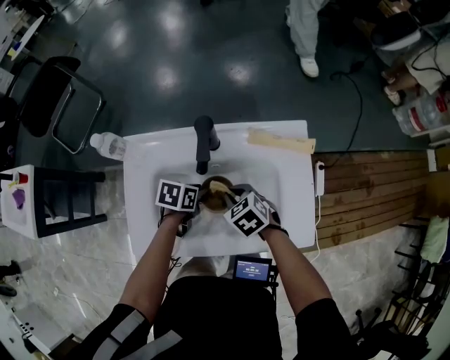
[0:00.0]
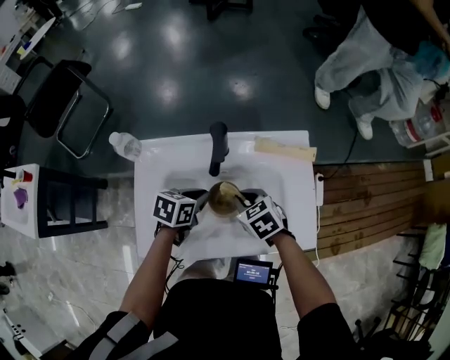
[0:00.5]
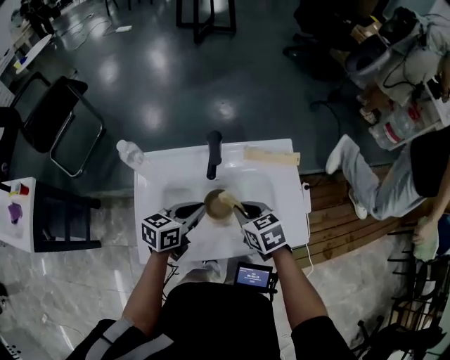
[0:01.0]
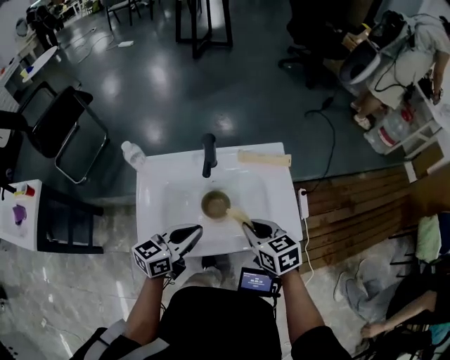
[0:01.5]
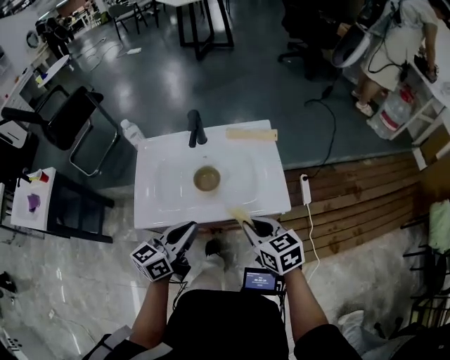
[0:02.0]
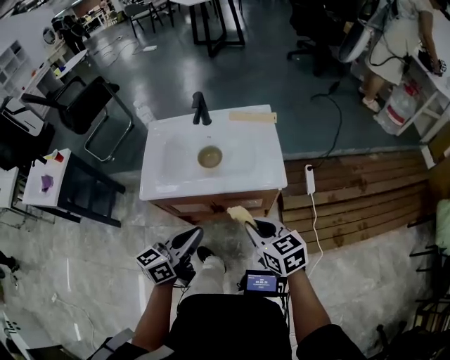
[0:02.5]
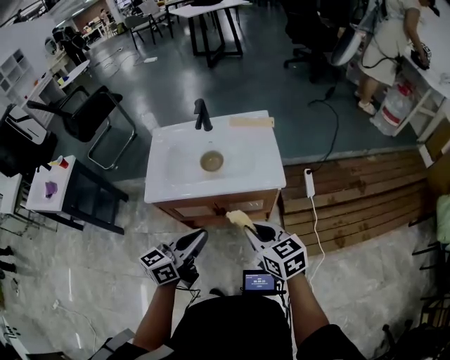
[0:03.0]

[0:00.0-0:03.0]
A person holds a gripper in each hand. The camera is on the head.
0:00.0 to 0:01.5: The right gripper moves upward, backward and to the right, some 20 cm, and changes its angle by about 30 degrees; the left gripper travels upward and backward by approximately 25 cm, tips its fingers upward by some 50 degrees, and closes.
0:01.5 to 0:03.0: Both grippers travel together backward, approximately 25 cm.

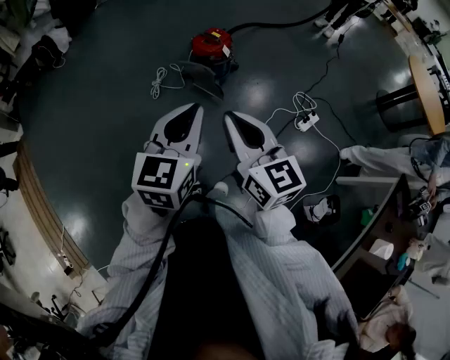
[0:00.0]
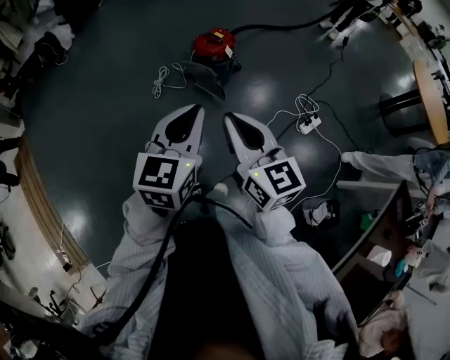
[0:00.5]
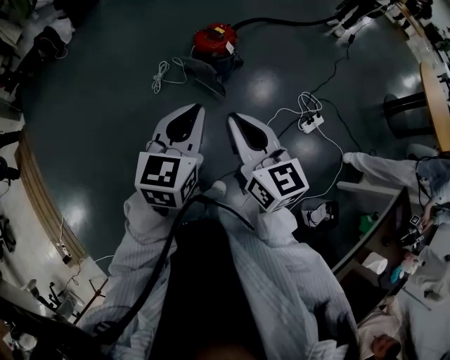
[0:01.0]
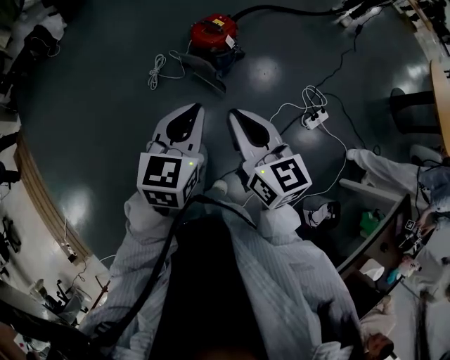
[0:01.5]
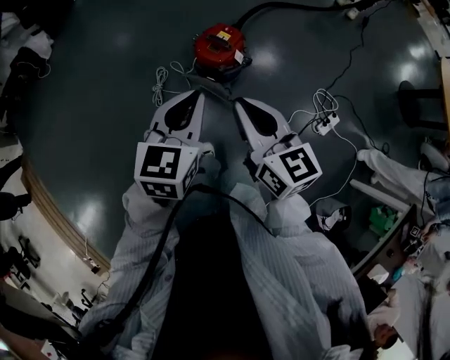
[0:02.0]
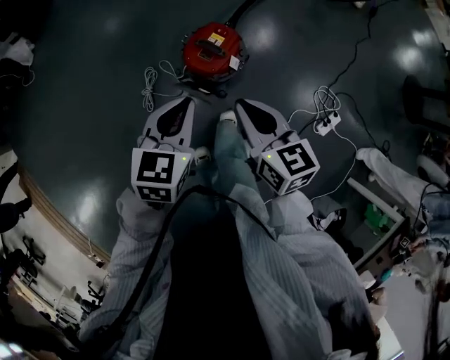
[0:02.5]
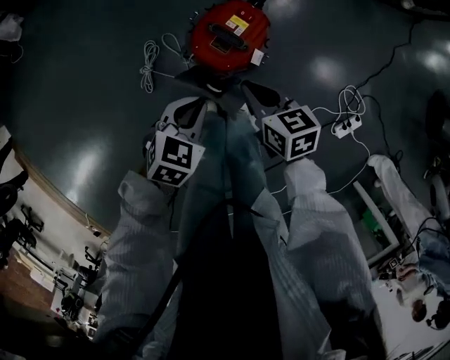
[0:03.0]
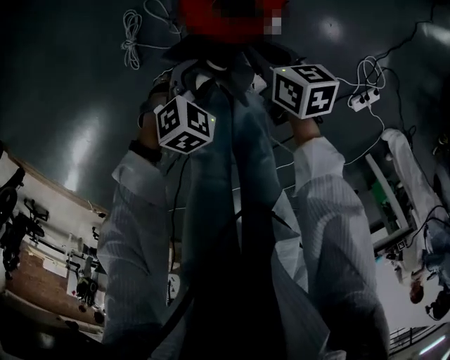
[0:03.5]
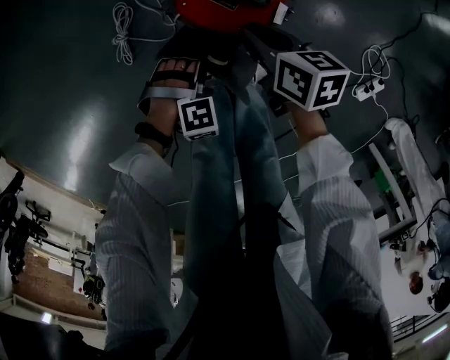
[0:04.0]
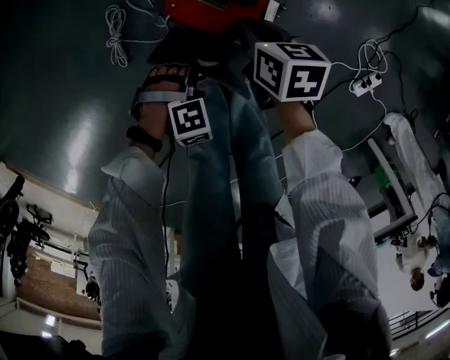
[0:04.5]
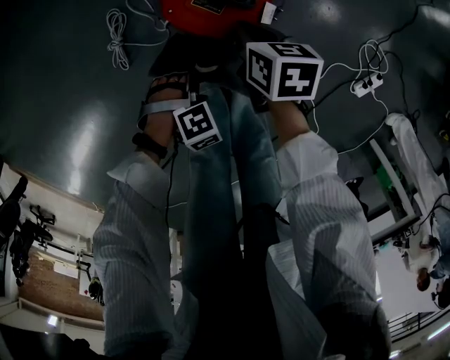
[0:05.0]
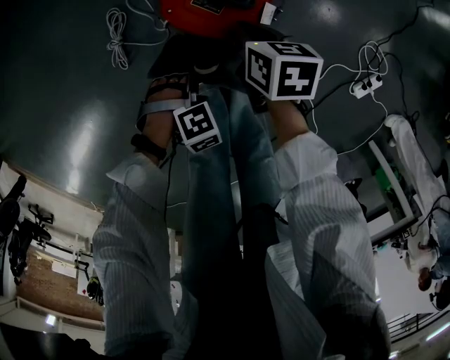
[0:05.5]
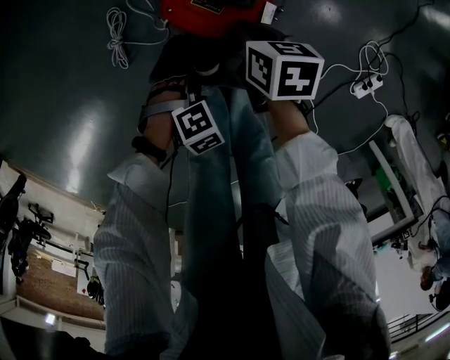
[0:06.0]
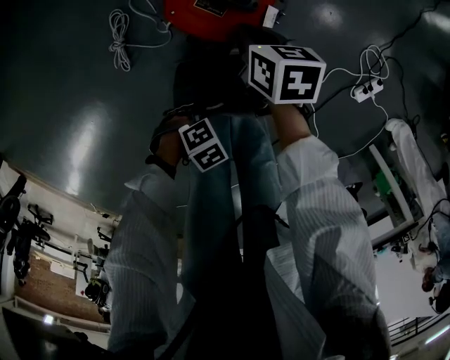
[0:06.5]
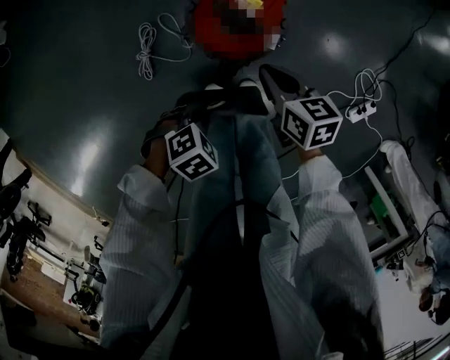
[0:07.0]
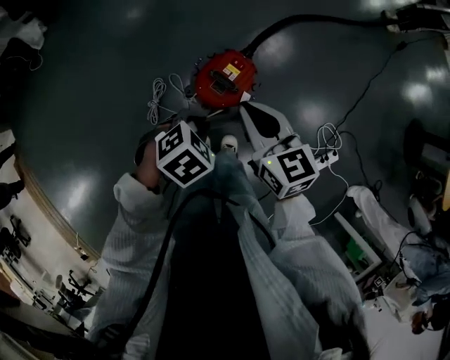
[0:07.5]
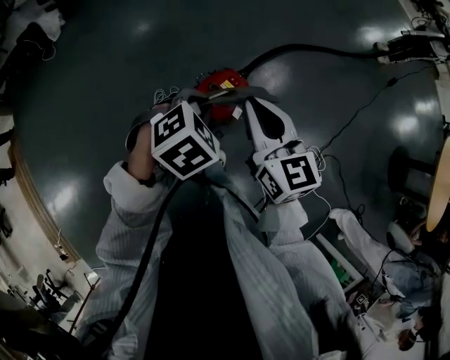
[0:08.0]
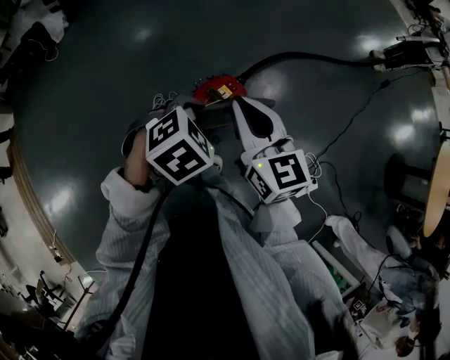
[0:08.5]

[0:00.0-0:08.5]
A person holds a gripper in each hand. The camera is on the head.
0:00.0 to 0:02.0: Both grippers travel together forward, some 40 cm.
0:02.0 to 0:04.0: The left gripper is displaced downward by roughly 60 cm, angles its fingers downward, by some 50 degrees, and opens. The right gripper moves downward and forward, roughly 60 cm, and tilts its fingers about 30 degrees downward.
0:04.0 to 0:06.5: The left gripper shifts by about 15 cm, changes its angle by some 40 degrees, and closes.
0:06.5 to 0:08.5: Both grippers travel together upward, roughly 60 cm. The left gripper swivels some 50 degrees, while the right gripper tilts its fingers roughly 40 degrees upward.

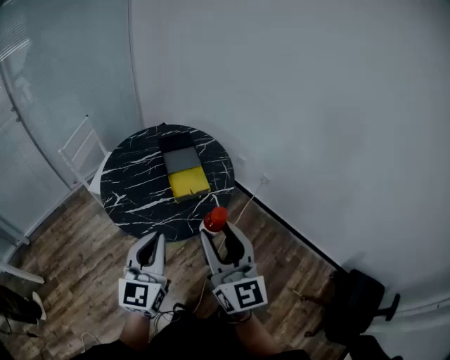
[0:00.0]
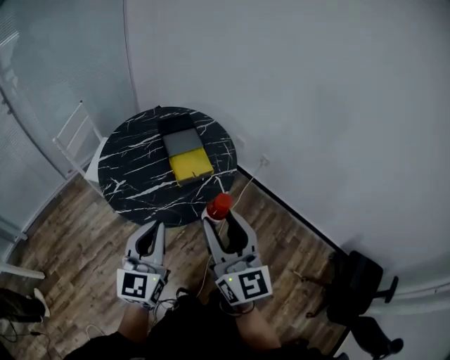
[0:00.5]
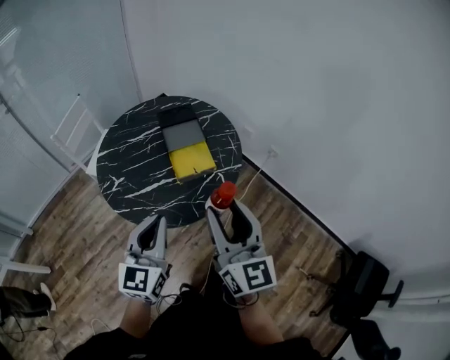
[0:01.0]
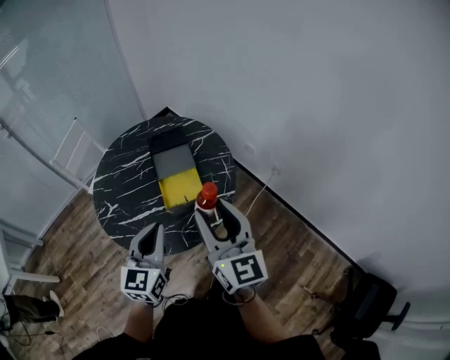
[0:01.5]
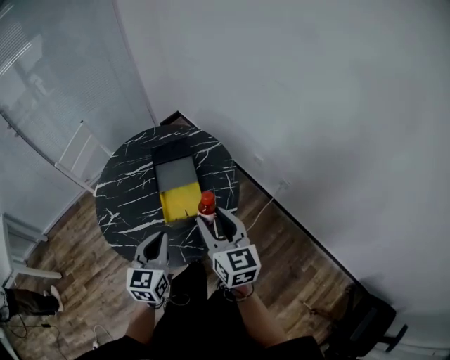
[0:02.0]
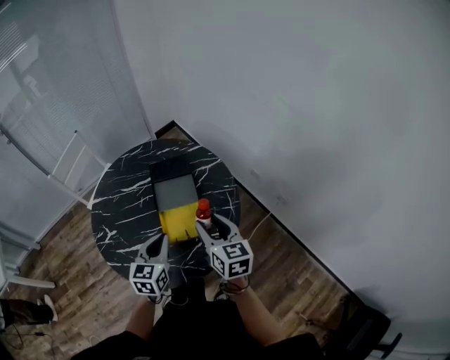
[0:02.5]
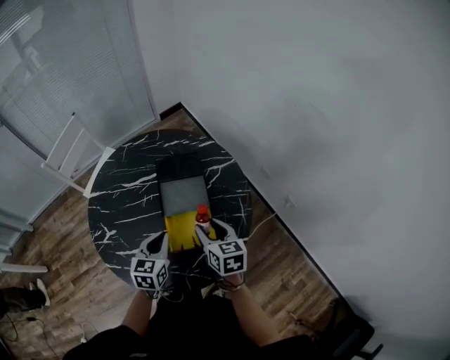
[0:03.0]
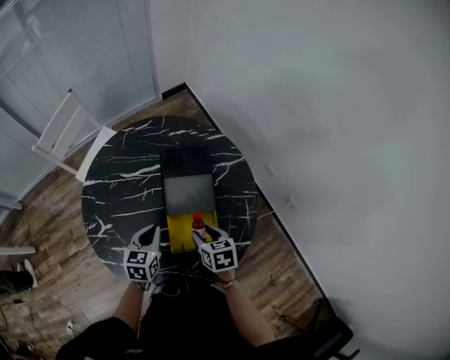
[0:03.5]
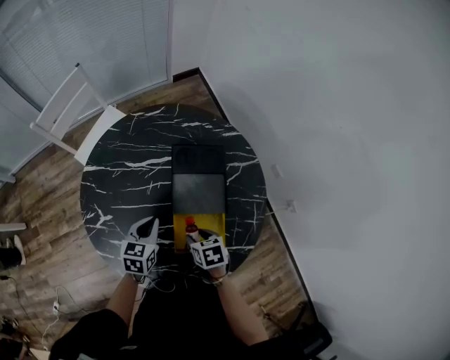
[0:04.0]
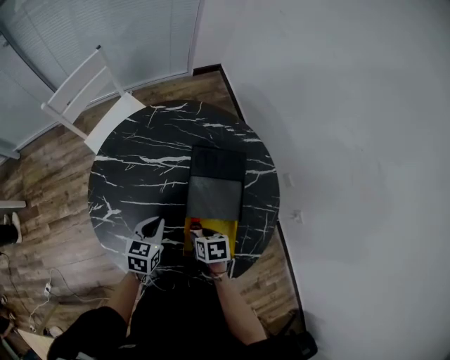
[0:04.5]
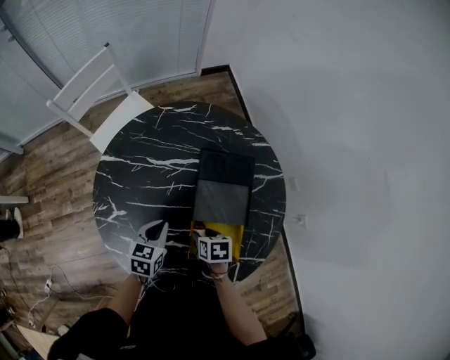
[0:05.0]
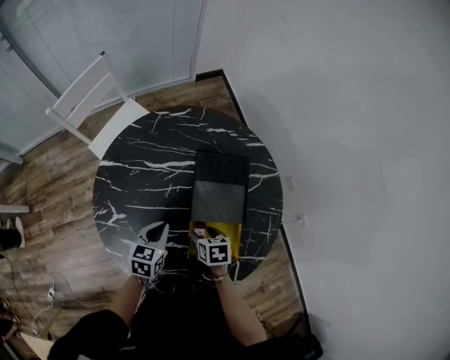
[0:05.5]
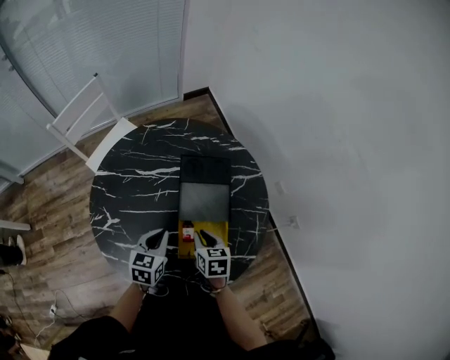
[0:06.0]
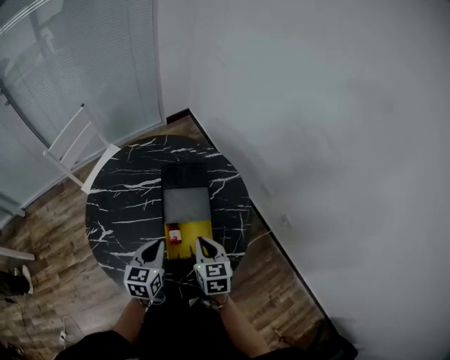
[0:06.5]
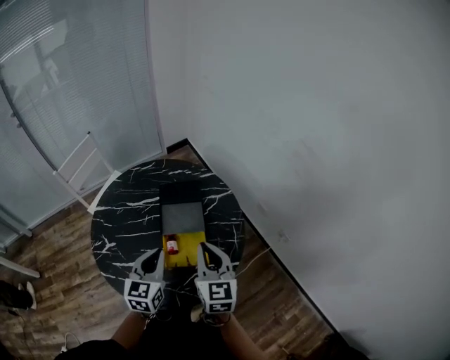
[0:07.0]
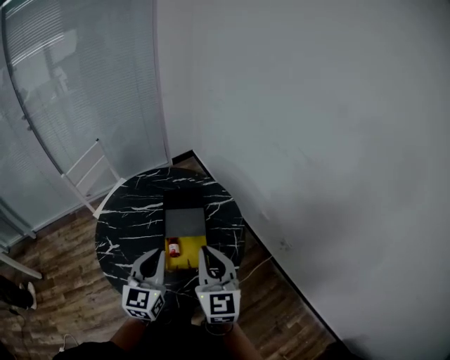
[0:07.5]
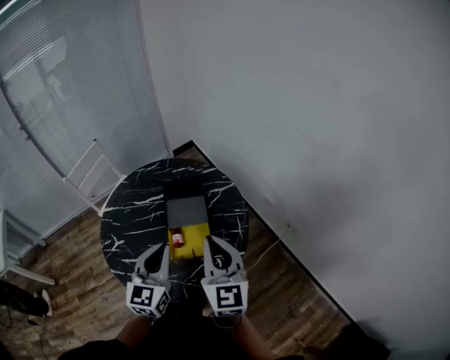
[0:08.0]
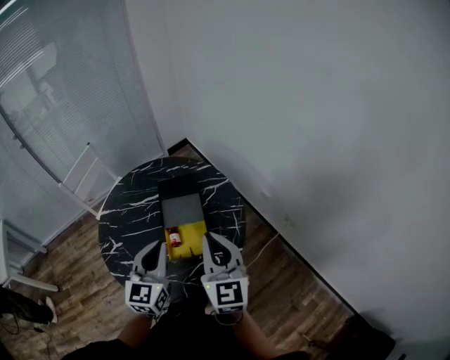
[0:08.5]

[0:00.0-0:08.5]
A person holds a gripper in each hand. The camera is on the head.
0:00.0 to 0:02.0: The right gripper heads forward and downward, covering roughly 30 cm, and changes its angle by about 20 degrees; the left gripper moves forward, downward and to the right, about 25 cm, and changes its angle by some 20 degrees.
0:02.0 to 0:04.0: The left gripper goes approximately 35 cm forward, downward and to the left, and rotates about 30 degrees, while the right gripper goes some 40 cm downward, forward and to the left, and tips its fingers downward by about 50 degrees.
0:04.0 to 0:06.5: The left gripper is displaced upward, backward and to the right by some 15 cm. The right gripper heads upward, covering some 15 cm, rotates about 30 degrees, and closes up.
0:06.5 to 0:08.5: The right gripper goes about 20 cm upward, and points its fingers about 30 degrees further upward; the left gripper heads upward, to the right and backward, covering about 20 cm, and swivels approximately 30 degrees.

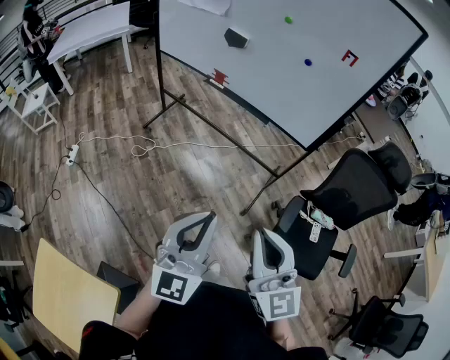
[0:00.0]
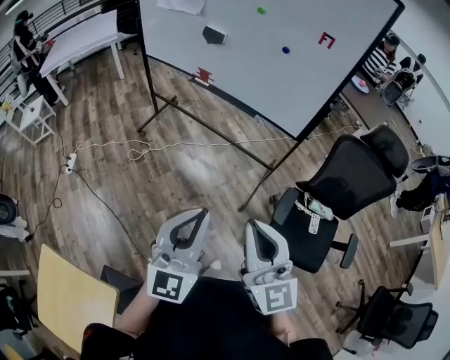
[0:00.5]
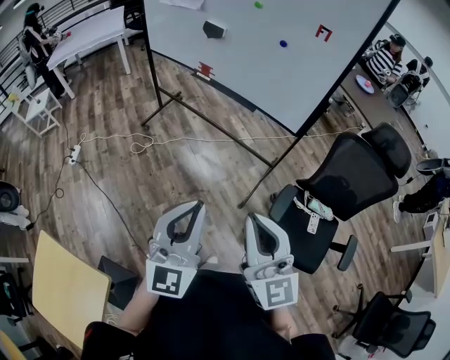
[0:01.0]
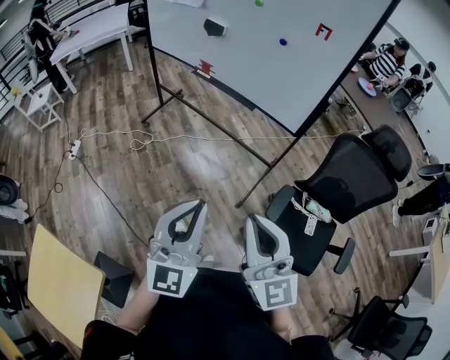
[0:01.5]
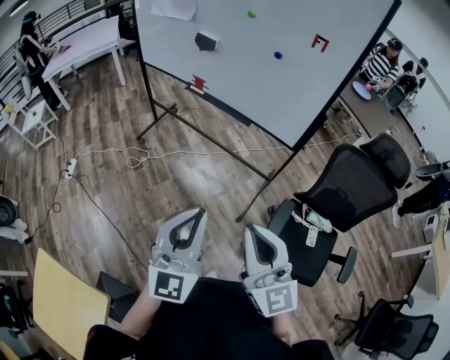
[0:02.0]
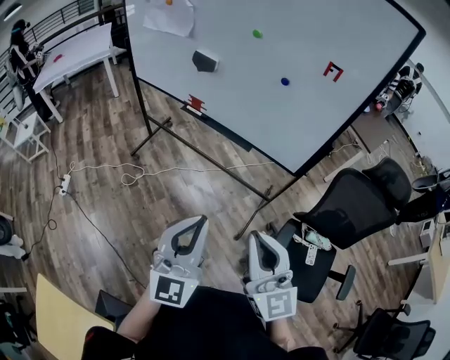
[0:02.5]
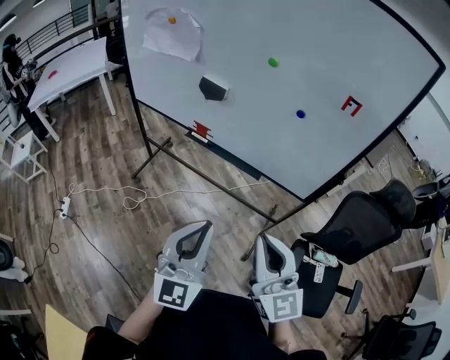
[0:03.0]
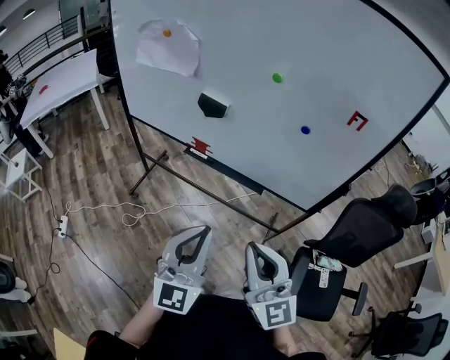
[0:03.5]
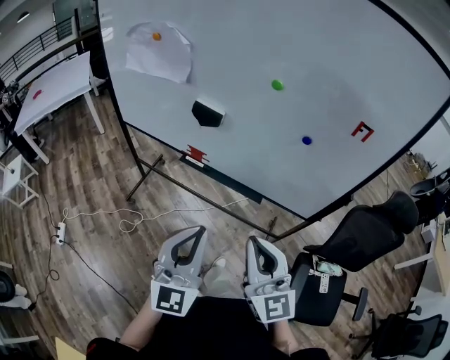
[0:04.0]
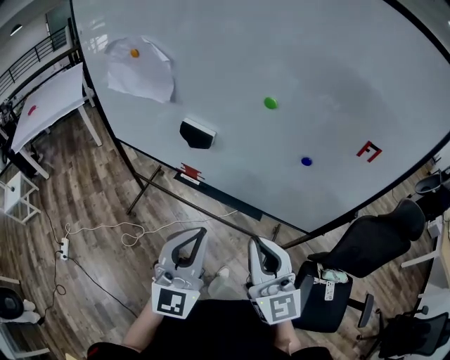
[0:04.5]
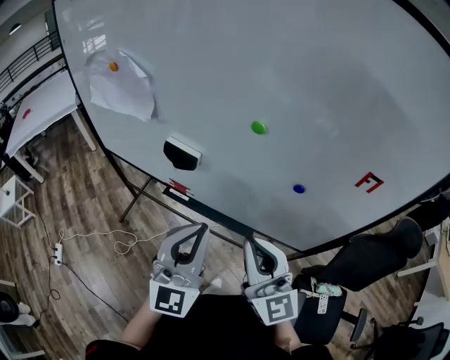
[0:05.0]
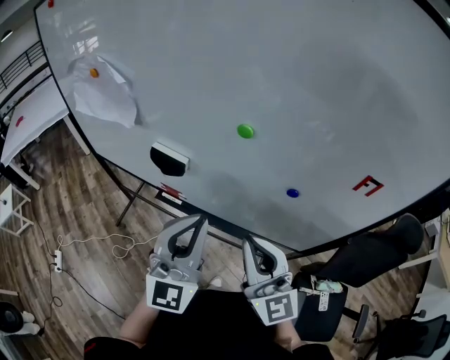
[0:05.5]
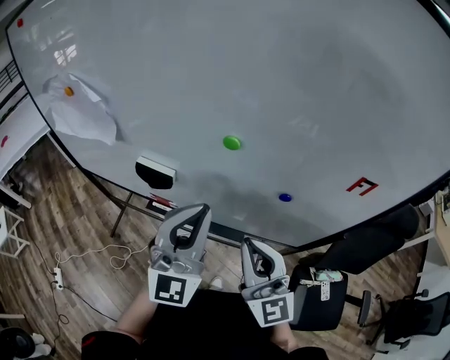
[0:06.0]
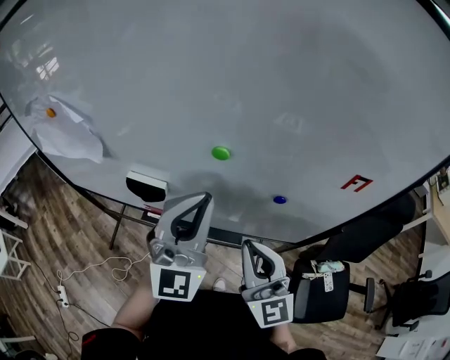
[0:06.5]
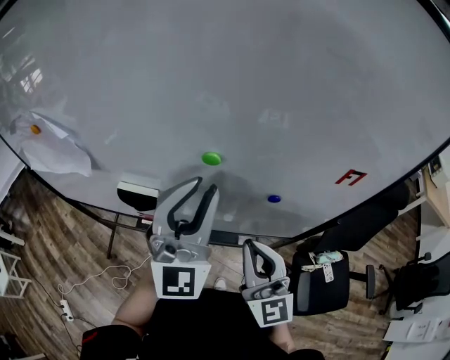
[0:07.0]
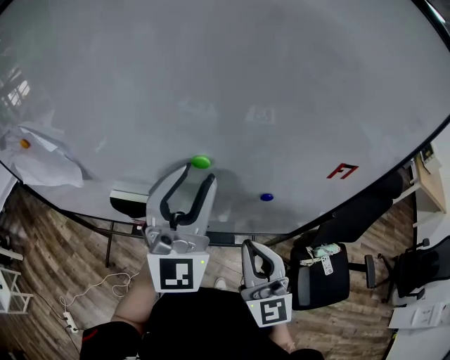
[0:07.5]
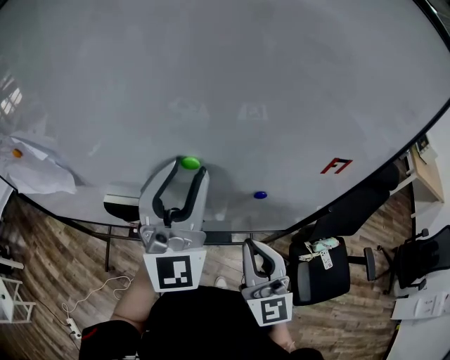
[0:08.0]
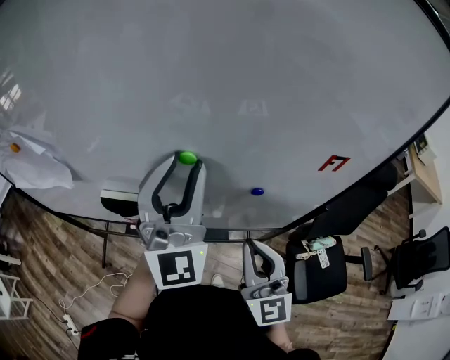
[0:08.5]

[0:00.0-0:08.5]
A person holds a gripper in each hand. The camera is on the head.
0:00.0 to 0:02.0: Both grippers move to the right, about 10 cm.
0:02.0 to 0:04.0: Both grippers move forward and to the left, about 35 cm.
0:04.0 to 0:06.5: Both grippers travel together forward, approximately 25 cm.
0:06.5 to 0:08.5: The left gripper goes some 5 cm upward and forward, and opens up.
